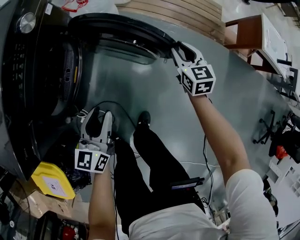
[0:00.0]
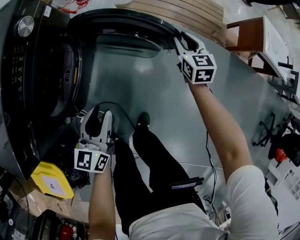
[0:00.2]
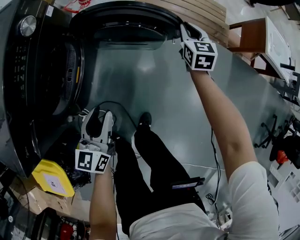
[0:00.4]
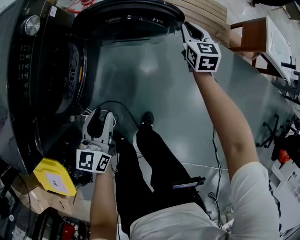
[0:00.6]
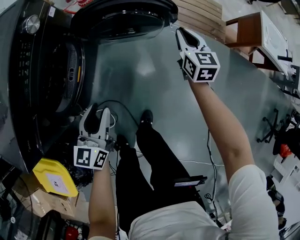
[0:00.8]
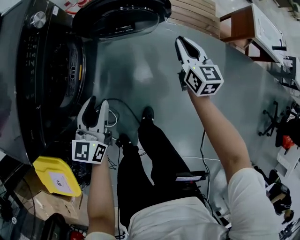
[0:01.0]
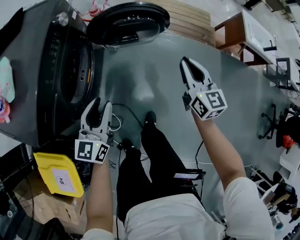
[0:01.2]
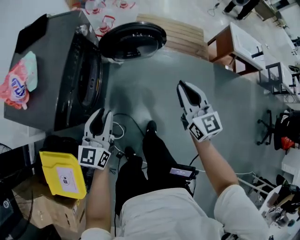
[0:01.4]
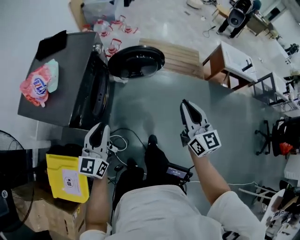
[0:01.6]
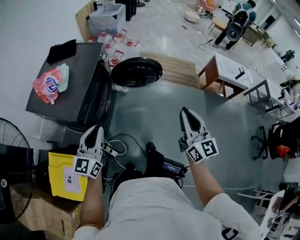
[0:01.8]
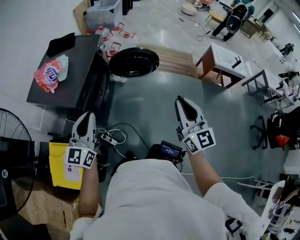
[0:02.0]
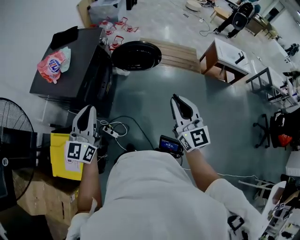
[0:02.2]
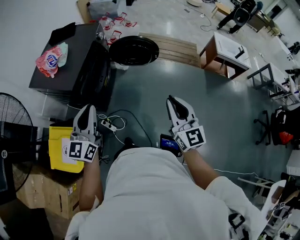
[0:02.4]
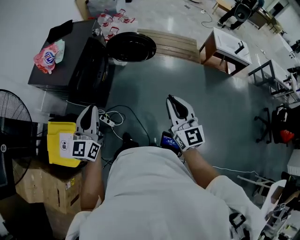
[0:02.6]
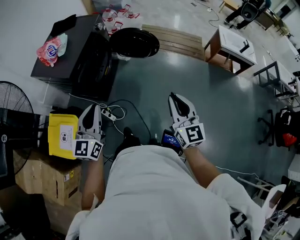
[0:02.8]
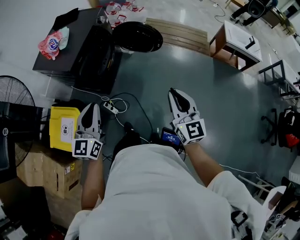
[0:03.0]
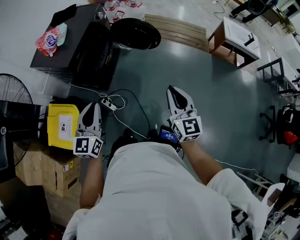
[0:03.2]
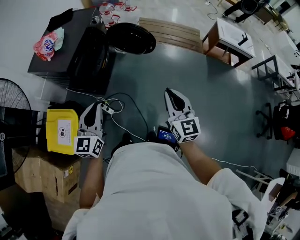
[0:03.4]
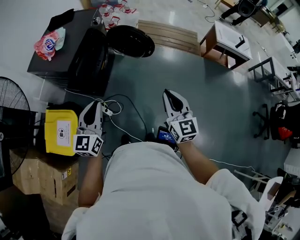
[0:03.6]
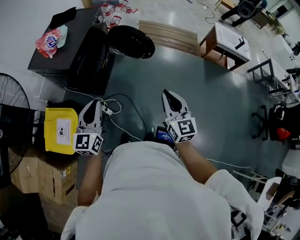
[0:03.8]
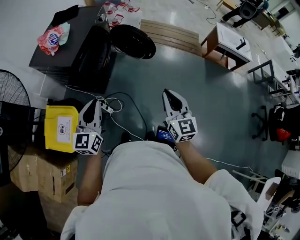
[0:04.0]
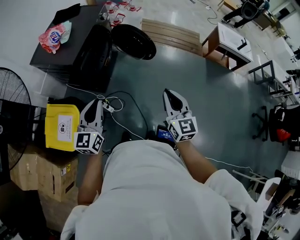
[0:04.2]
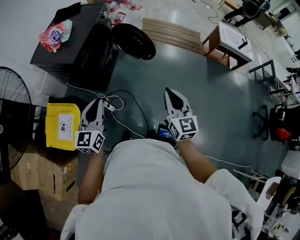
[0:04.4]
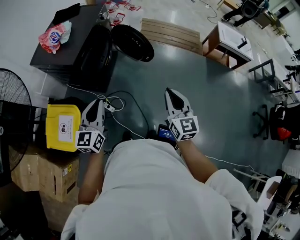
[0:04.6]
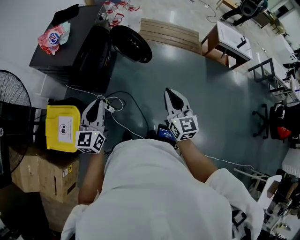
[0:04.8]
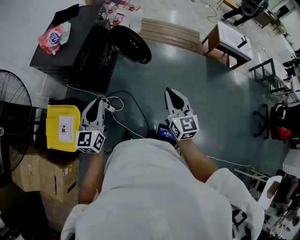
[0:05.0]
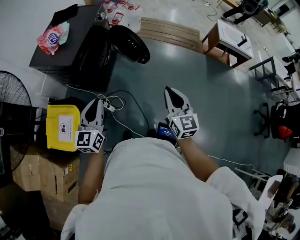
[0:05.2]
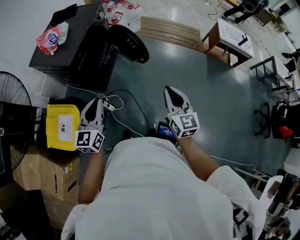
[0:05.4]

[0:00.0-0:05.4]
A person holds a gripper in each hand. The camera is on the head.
0.0 to 1.4 s: The right gripper heads upward and backward, covering about 40 cm, and turns by some 30 degrees; the left gripper heads upward and backward, covering roughly 25 cm.
1.4 to 2.8 s: Both grippers move backward and upward, about 35 cm. The left gripper closes its fingers.
2.8 to 4.0 s: The grippers both shift to the left by roughly 5 cm.
4.0 to 5.4 s: There are only small adjustments of the grippers.

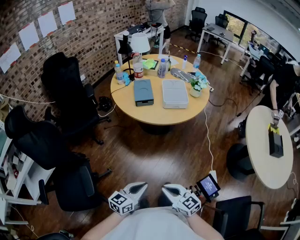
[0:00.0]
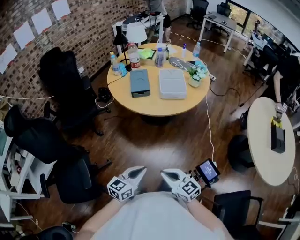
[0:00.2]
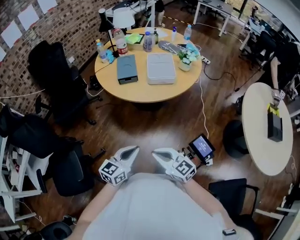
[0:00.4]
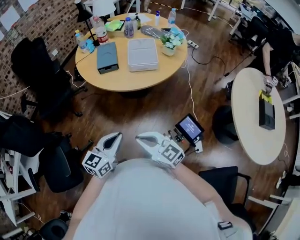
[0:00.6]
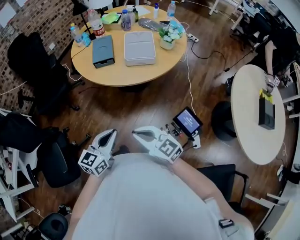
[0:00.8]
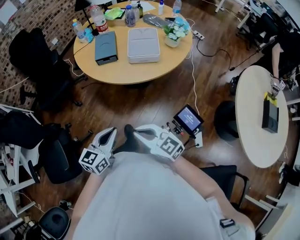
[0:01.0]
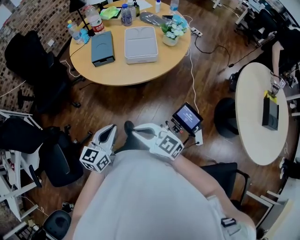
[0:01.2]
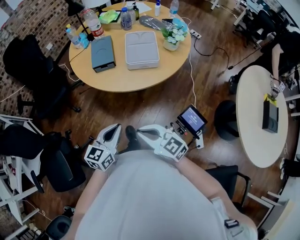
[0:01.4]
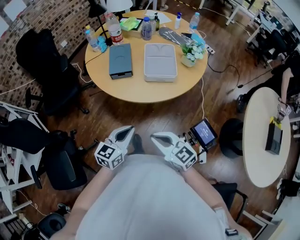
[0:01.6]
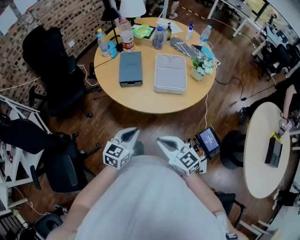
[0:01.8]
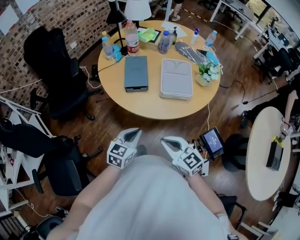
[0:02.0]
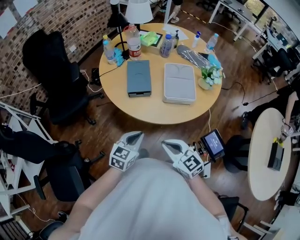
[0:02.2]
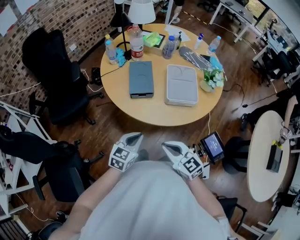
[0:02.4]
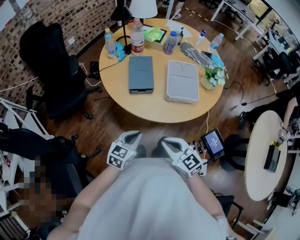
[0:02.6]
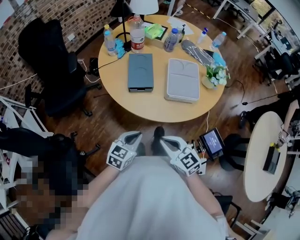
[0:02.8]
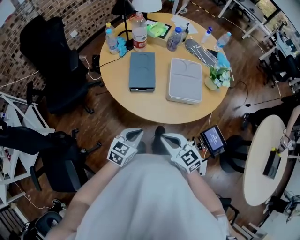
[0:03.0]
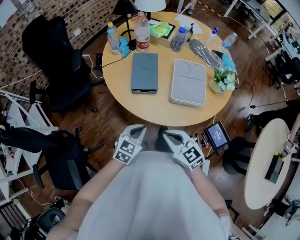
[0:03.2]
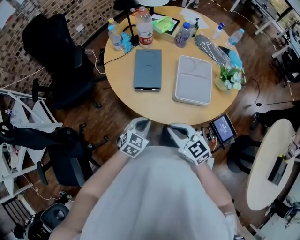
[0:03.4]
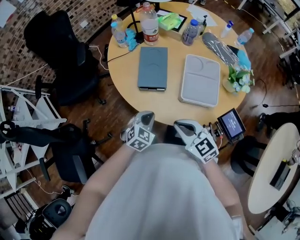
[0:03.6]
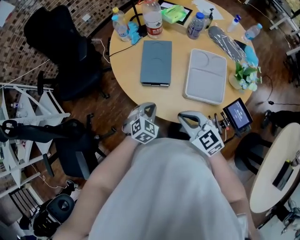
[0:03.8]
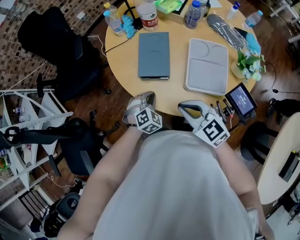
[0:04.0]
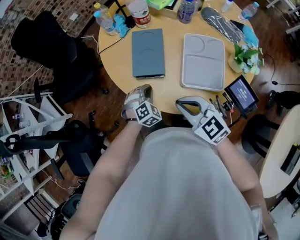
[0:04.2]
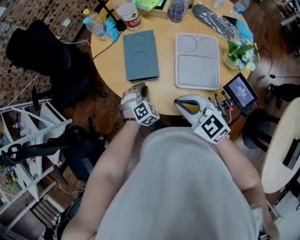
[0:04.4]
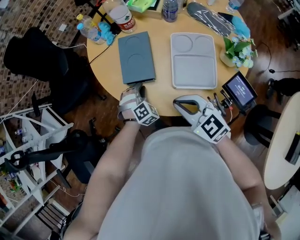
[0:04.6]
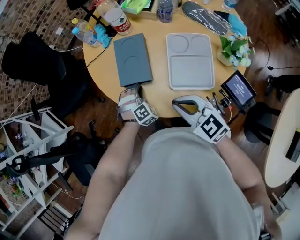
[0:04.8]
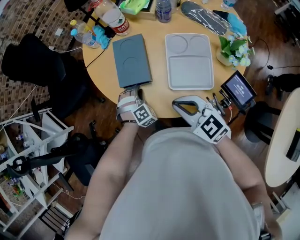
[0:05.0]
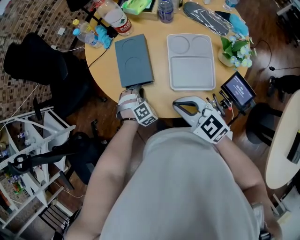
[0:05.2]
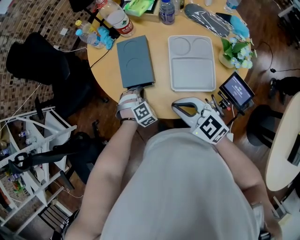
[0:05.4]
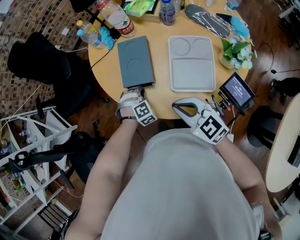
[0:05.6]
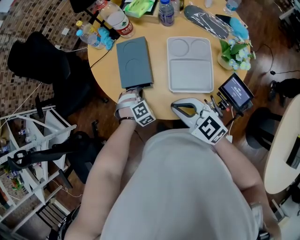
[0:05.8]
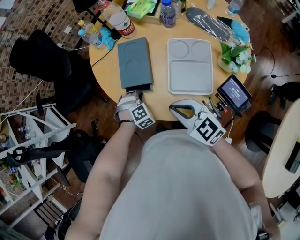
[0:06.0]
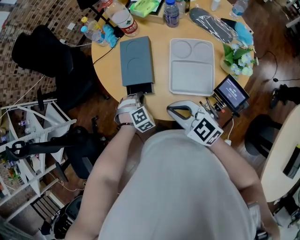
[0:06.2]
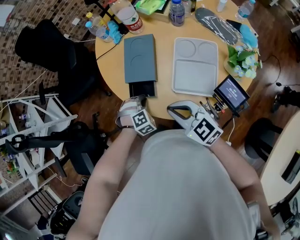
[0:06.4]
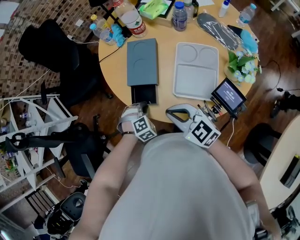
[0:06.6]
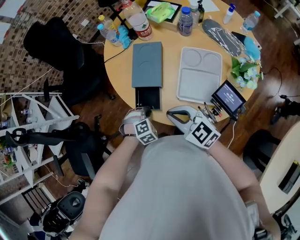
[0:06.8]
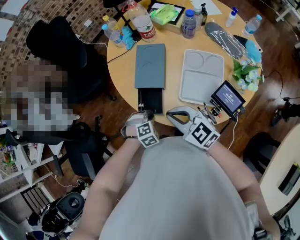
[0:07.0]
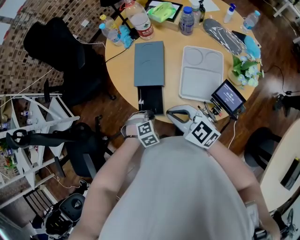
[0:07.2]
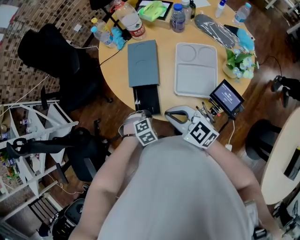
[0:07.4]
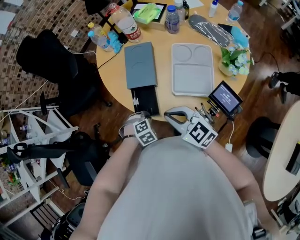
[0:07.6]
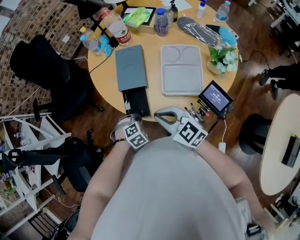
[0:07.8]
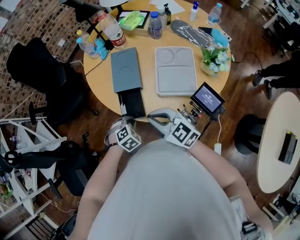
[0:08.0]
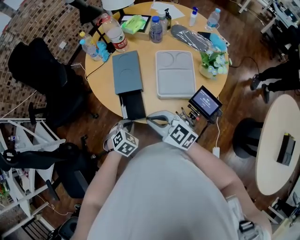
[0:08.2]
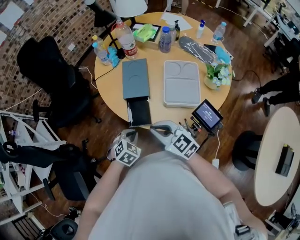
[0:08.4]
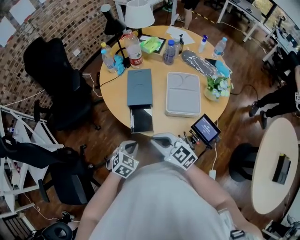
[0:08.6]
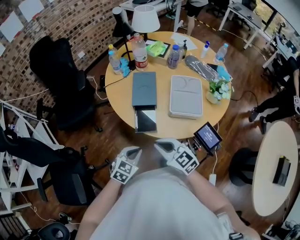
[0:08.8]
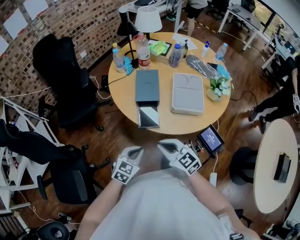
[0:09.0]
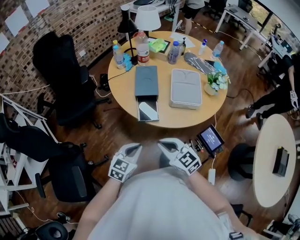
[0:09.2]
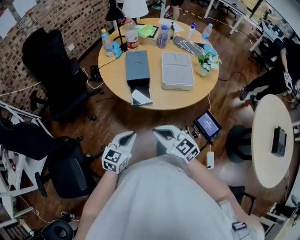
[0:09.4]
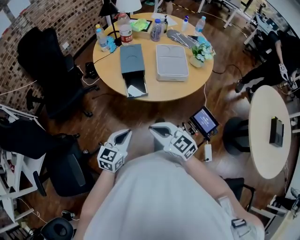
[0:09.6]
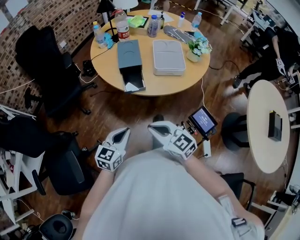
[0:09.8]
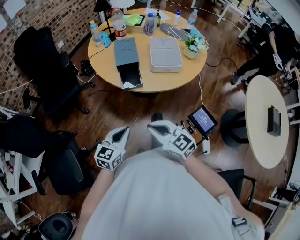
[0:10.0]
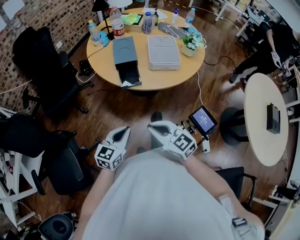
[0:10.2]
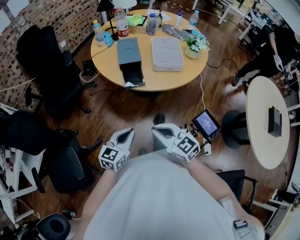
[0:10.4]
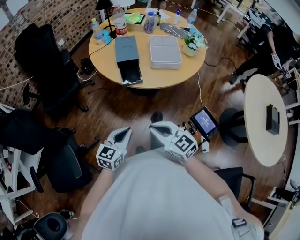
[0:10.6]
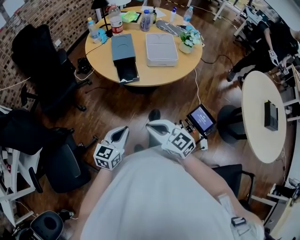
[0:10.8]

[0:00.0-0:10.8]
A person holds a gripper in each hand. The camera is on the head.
0.0 to 1.6 s: Both grippers move forward and to the right, approximately 30 cm.
1.6 to 3.0 s: The left gripper heads forward, downward and to the left, covering approximately 15 cm. Meanwhile the right gripper is displaced forward by roughly 15 cm.
3.0 to 4.6 s: The right gripper moves about 15 cm, while the left gripper shifts by approximately 25 cm, and swivels roughly 70 degrees.
4.6 to 6.2 s: The grippers move only a little.
6.2 to 7.8 s: The left gripper shifts by about 10 cm, and turns by approximately 20 degrees. Meanwhile the right gripper shifts by some 5 cm.
7.8 to 9.2 s: The right gripper ends up some 15 cm from where it was; the left gripper moves upward, some 15 cm, and angles its fingers upward, by about 50 degrees.
9.2 to 10.8 s: The grippers both shift backward by approximately 15 cm.

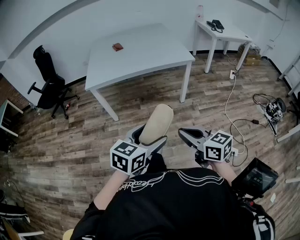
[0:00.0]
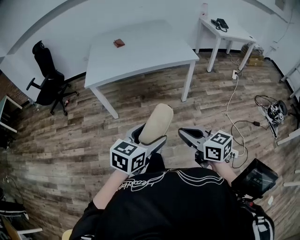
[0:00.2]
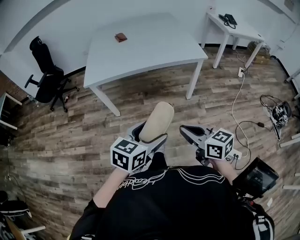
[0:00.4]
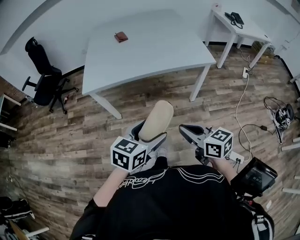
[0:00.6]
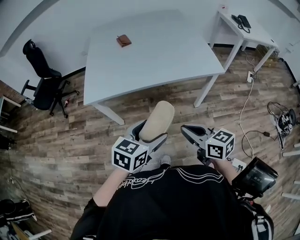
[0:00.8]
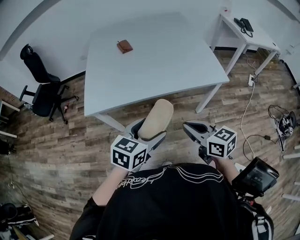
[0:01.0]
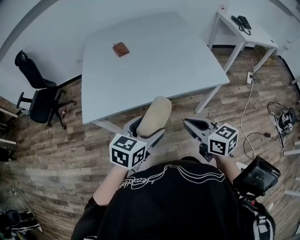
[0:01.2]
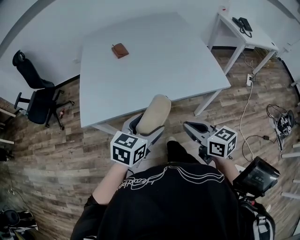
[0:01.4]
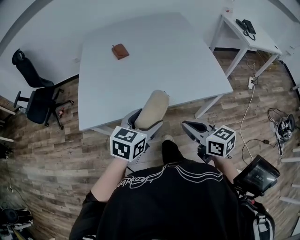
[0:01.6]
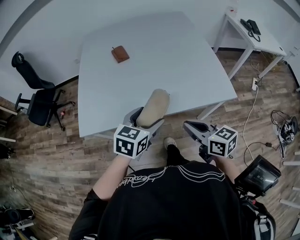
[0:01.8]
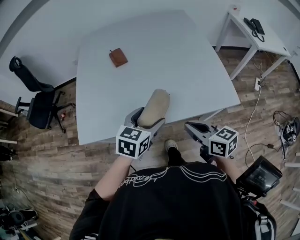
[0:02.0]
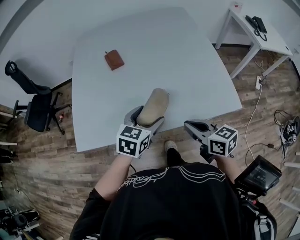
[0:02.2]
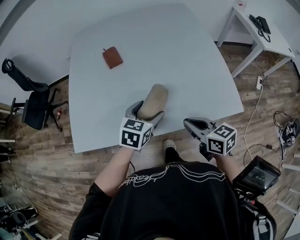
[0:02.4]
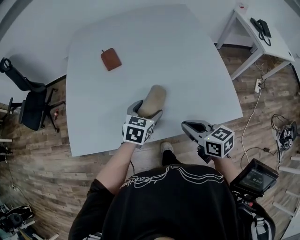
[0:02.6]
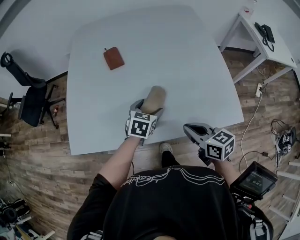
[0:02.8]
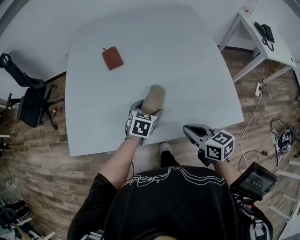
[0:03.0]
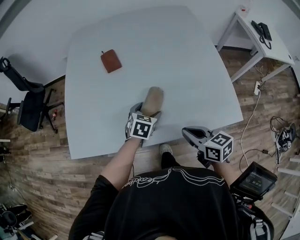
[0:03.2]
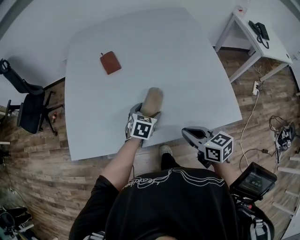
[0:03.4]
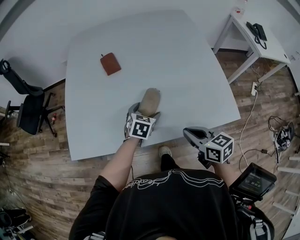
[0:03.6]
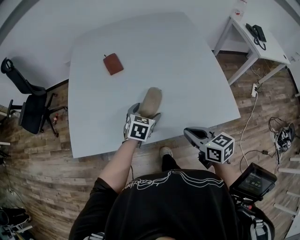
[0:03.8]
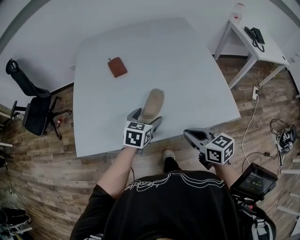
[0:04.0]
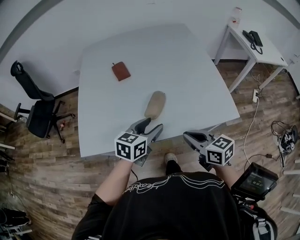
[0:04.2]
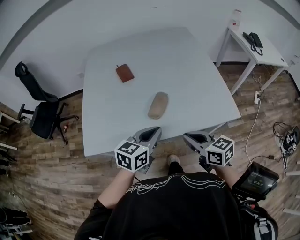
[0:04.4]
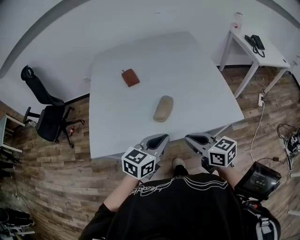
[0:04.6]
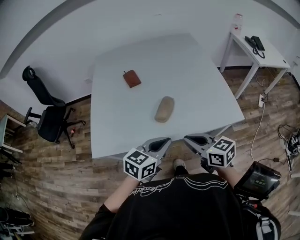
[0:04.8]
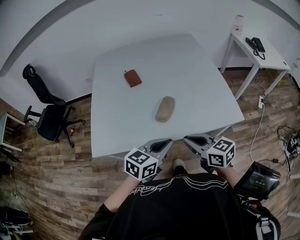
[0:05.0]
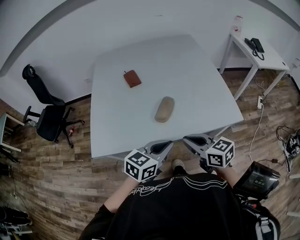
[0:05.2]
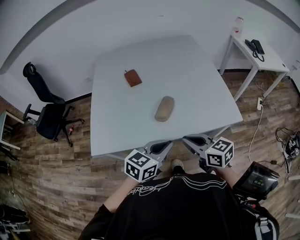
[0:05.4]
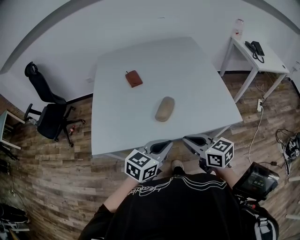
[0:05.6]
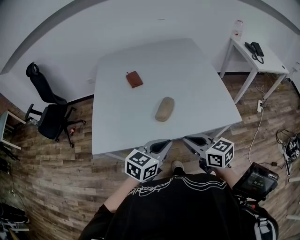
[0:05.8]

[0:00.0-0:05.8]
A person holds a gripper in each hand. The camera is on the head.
0.0 to 1.4 s: Both grippers are carried forward, some 50 cm.
1.4 to 2.8 s: The left gripper moves forward and downward, some 35 cm; the right gripper moves forward, some 25 cm.
2.8 to 4.4 s: The left gripper is displaced upward and backward by some 20 cm, rotates some 30 degrees, and closes up, while the right gripper shifts about 10 cm upward and backward.
4.4 to 5.8 s: The right gripper moves backward, some 5 cm, while the left gripper travels backward by about 10 cm.

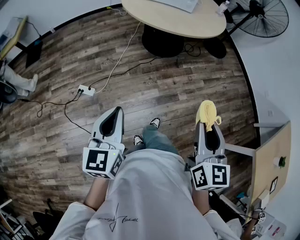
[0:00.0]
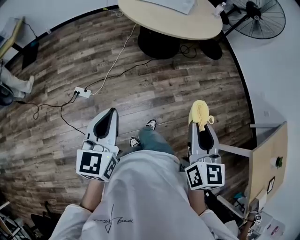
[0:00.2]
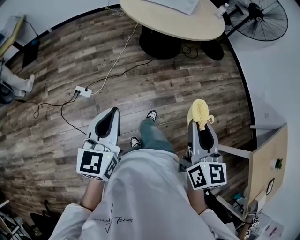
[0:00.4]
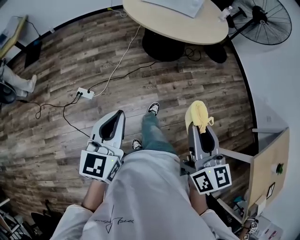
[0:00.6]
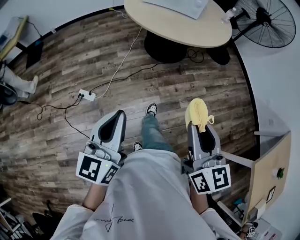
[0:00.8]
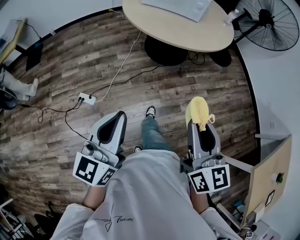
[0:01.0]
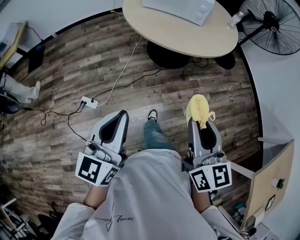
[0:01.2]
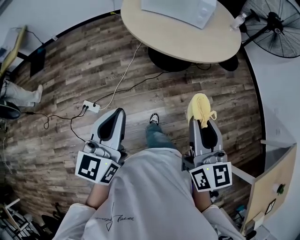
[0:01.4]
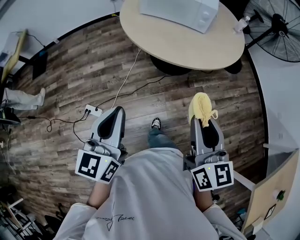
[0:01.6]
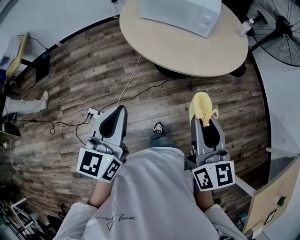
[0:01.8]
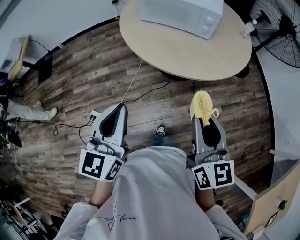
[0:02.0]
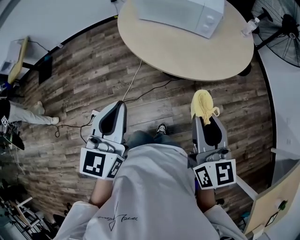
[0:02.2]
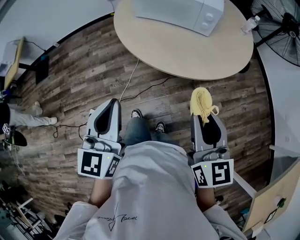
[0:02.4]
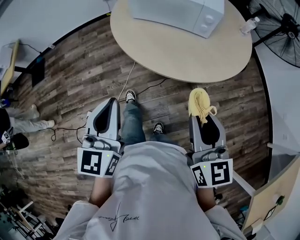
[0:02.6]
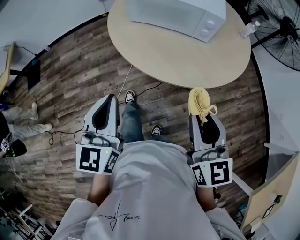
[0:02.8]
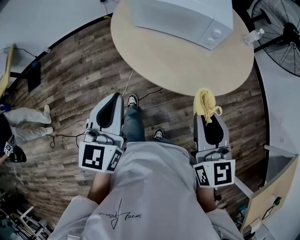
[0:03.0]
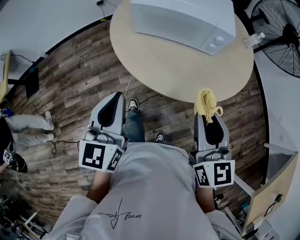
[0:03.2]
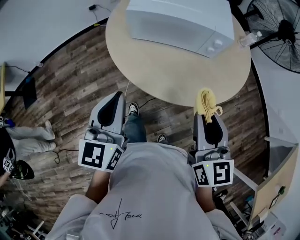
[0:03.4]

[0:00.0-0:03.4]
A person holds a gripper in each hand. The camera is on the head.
0.0 to 1.6 s: The grippers both shift forward by about 30 cm.
1.6 to 3.4 s: The grippers both shift forward by roughly 35 cm.
